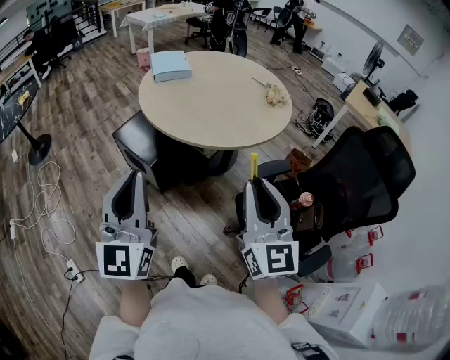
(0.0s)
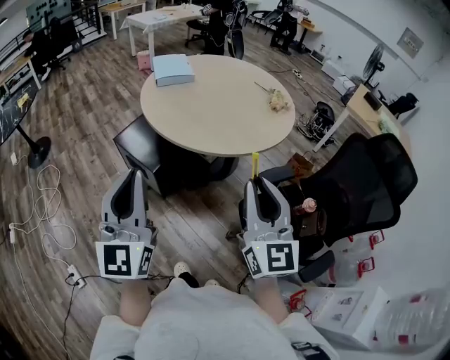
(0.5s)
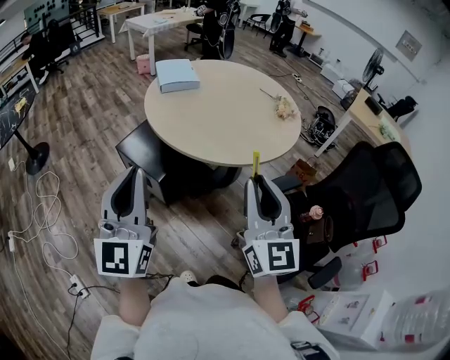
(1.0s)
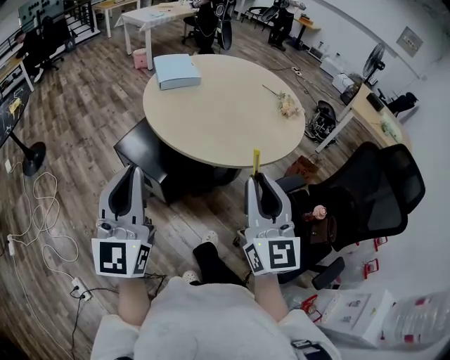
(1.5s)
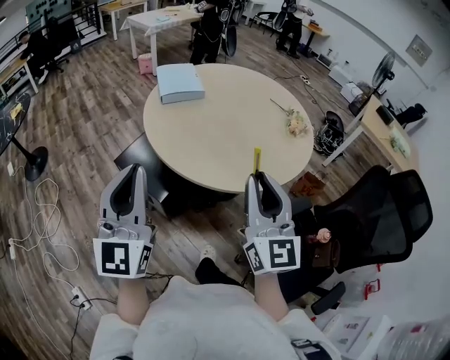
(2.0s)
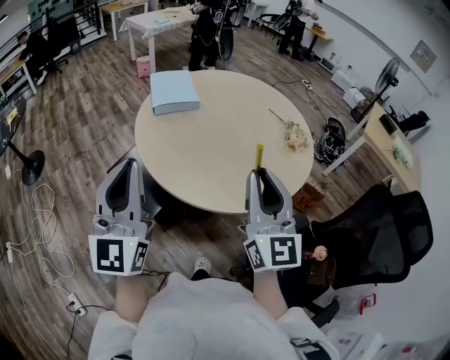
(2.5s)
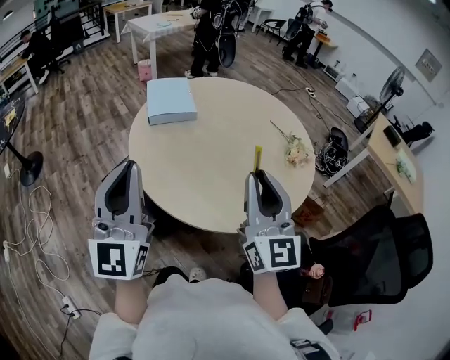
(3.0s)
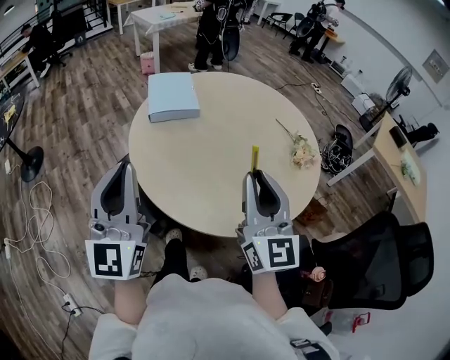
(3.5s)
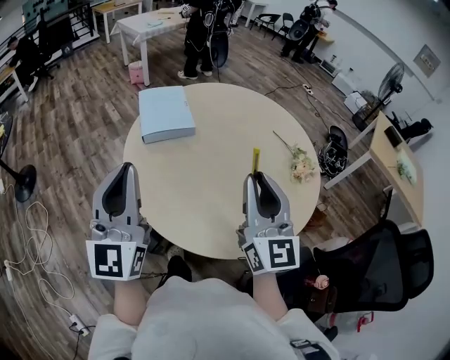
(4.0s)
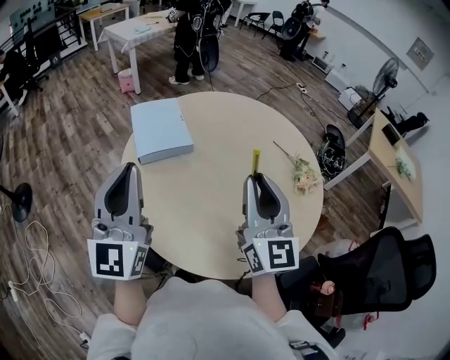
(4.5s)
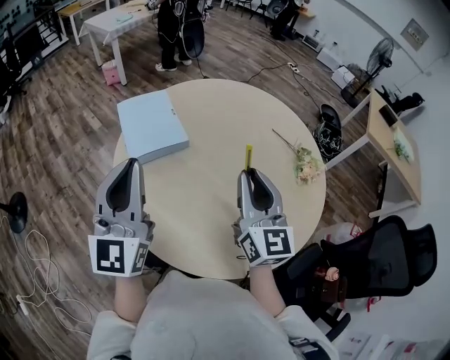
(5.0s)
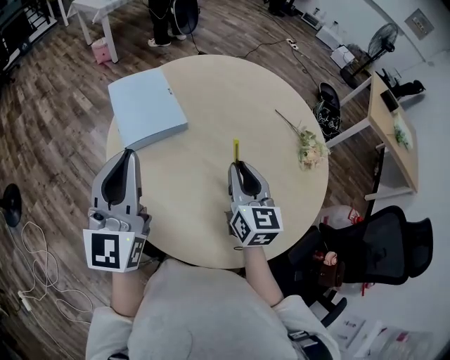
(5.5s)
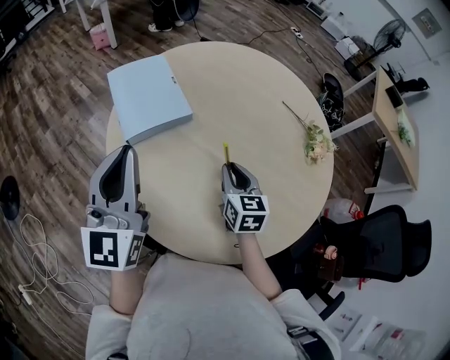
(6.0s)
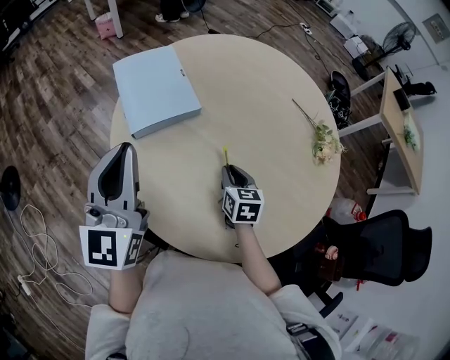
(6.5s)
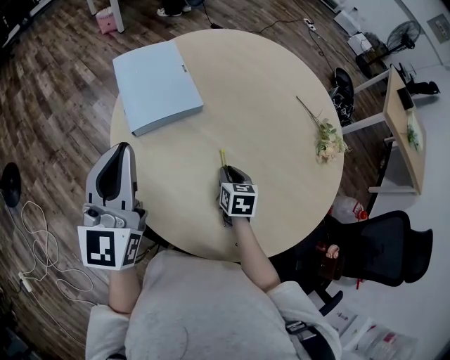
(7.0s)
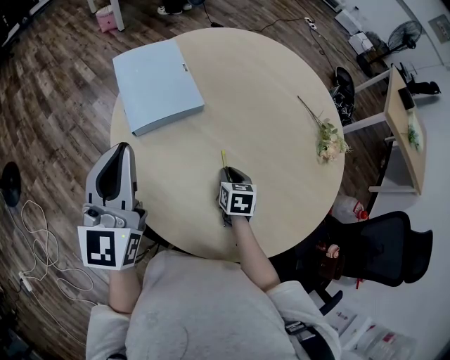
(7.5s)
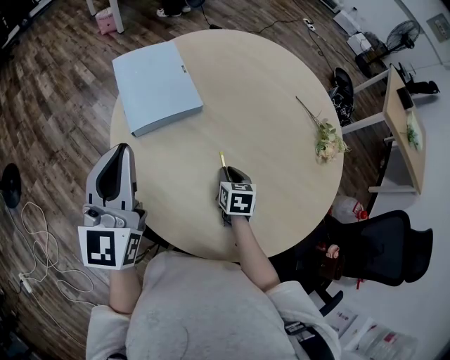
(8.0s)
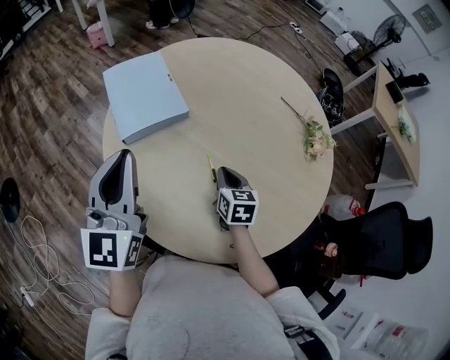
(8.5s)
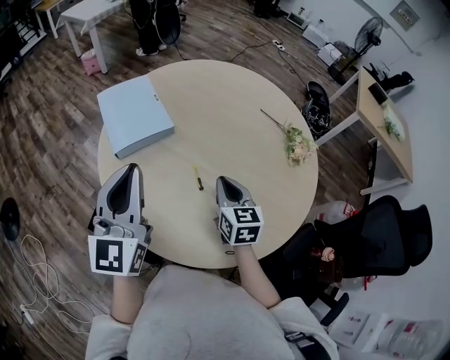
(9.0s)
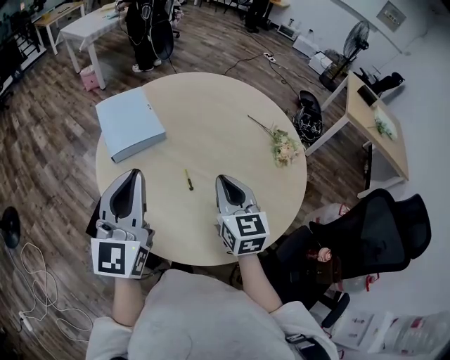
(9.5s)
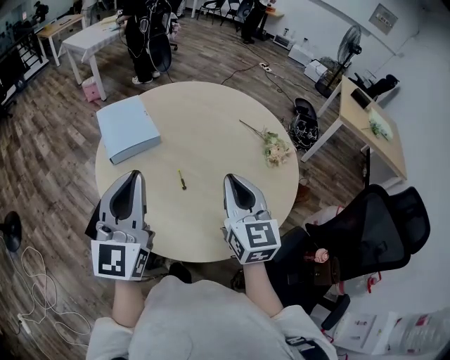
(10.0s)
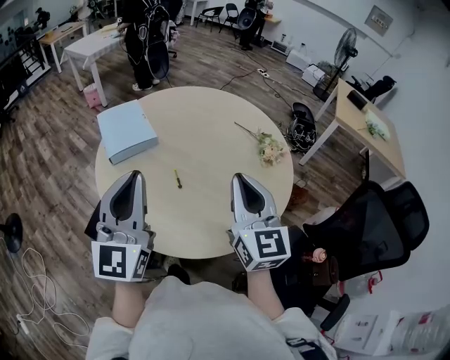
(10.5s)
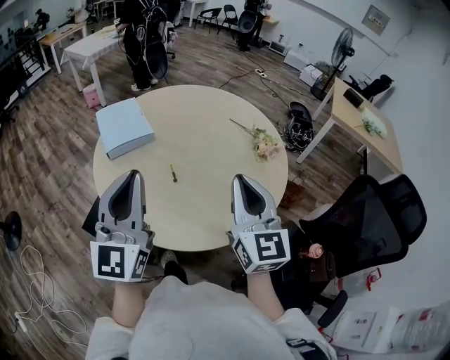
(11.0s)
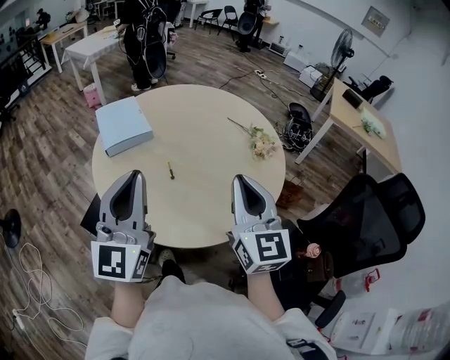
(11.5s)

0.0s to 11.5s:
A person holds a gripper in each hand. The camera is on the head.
0.0s to 2.0s: Both grippers move forward, roughly 25 cm.
2.0s to 4.0s: Both grippers travel together forward, some 30 cm.
4.0s to 6.0s: The left gripper shifts roughly 25 cm forward and downward. The right gripper shifts approximately 35 cm downward and forward, and points its fingers about 40 degrees further downward.
6.0s to 7.5s: The right gripper moves downward, about 15 cm, and swivels approximately 20 degrees.
7.5s to 9.5s: The right gripper shifts about 25 cm upward, and angles its fingers upward, by some 40 degrees. Meanwhile the left gripper travels to the right, backward and upward by about 20 cm.
9.5s to 11.5s: The left gripper is displaced backward and to the right by roughly 15 cm; the right gripper heads backward, upward and to the right, covering some 25 cm.

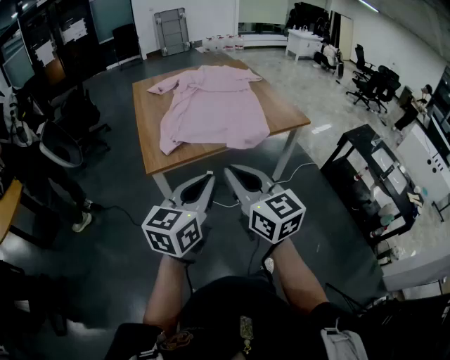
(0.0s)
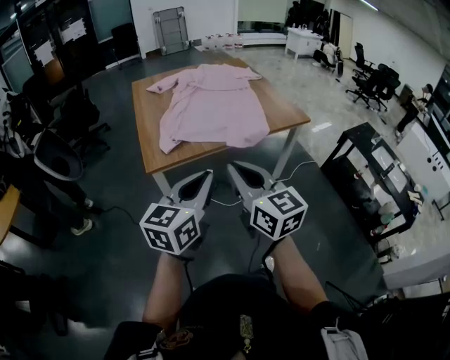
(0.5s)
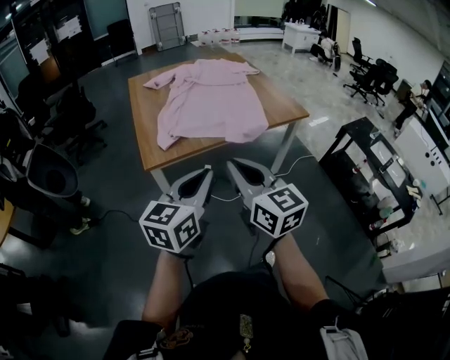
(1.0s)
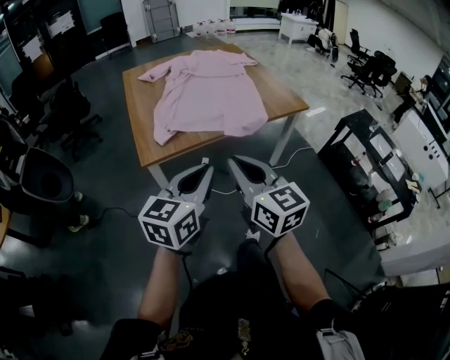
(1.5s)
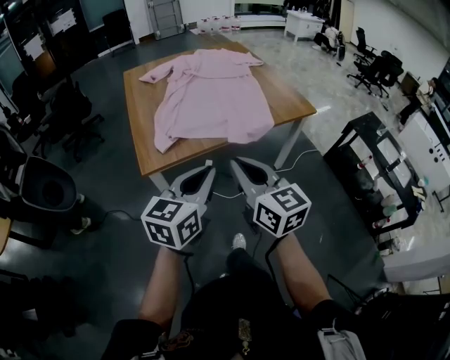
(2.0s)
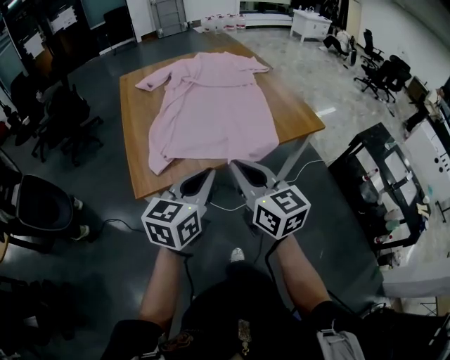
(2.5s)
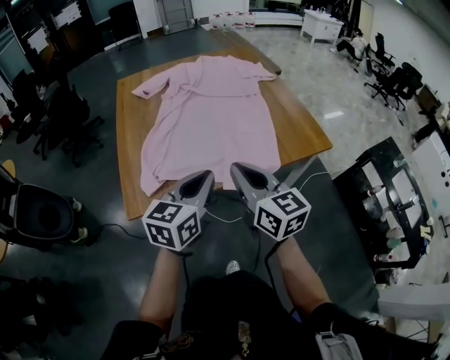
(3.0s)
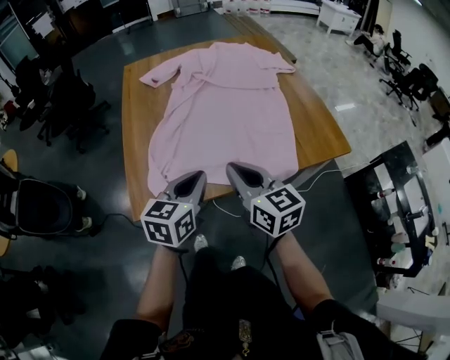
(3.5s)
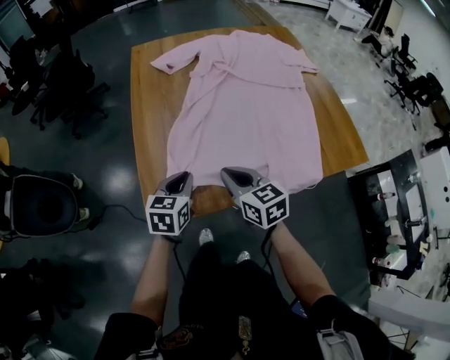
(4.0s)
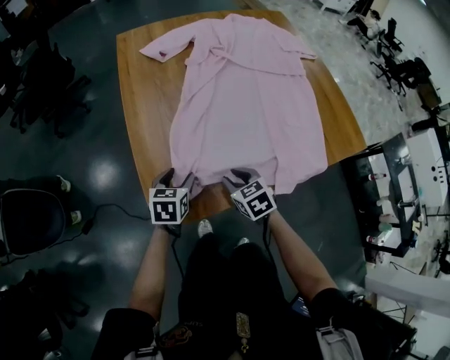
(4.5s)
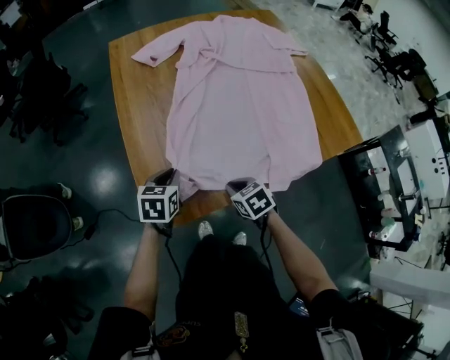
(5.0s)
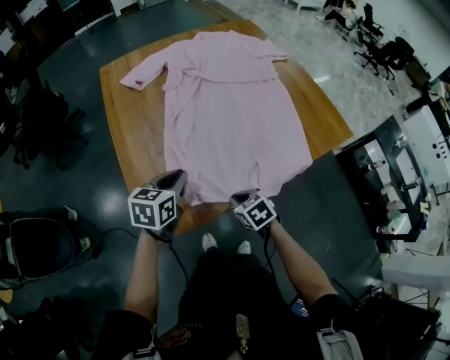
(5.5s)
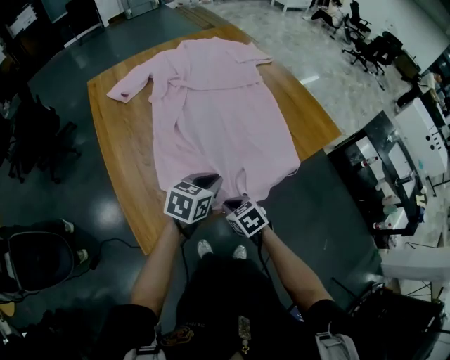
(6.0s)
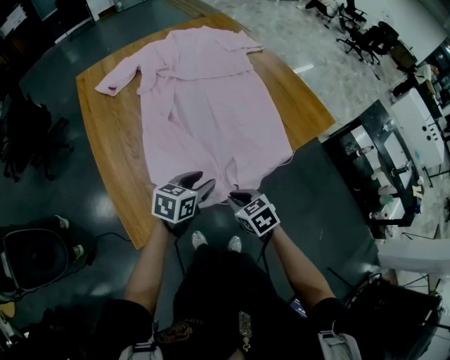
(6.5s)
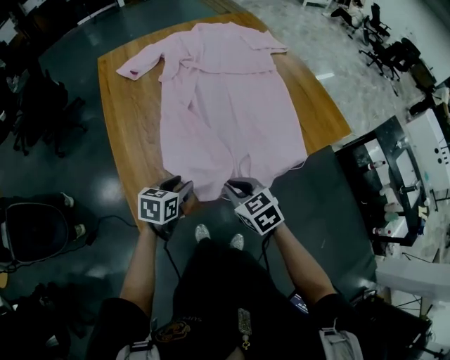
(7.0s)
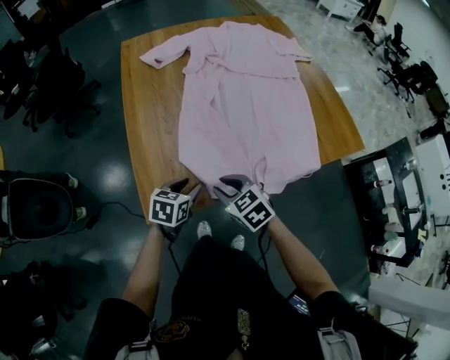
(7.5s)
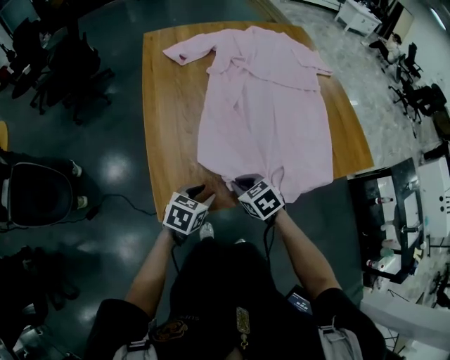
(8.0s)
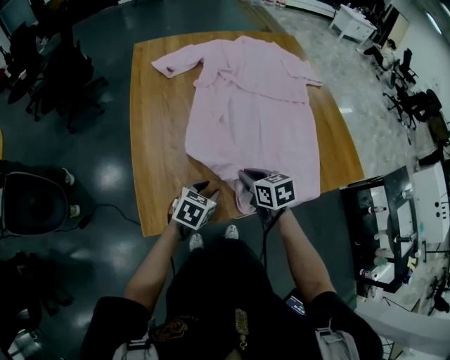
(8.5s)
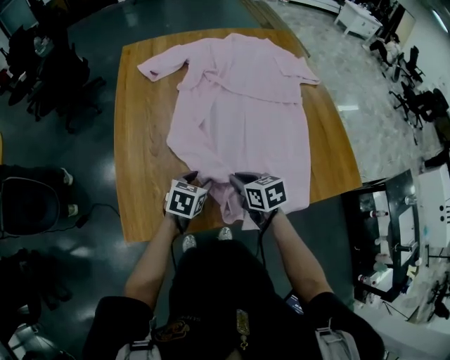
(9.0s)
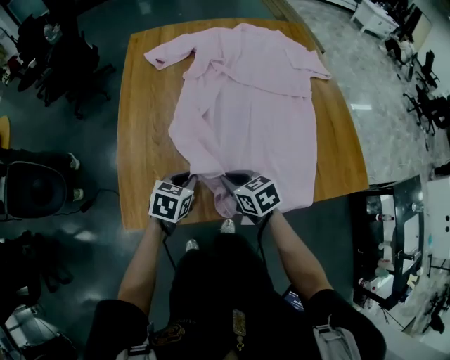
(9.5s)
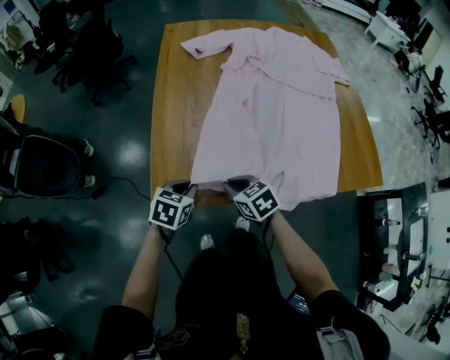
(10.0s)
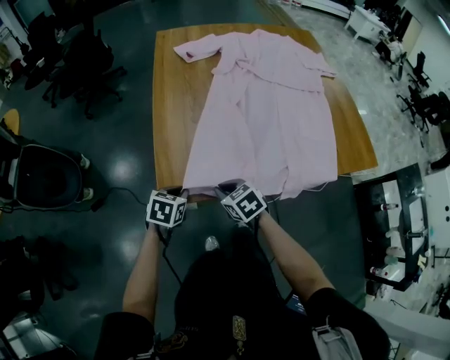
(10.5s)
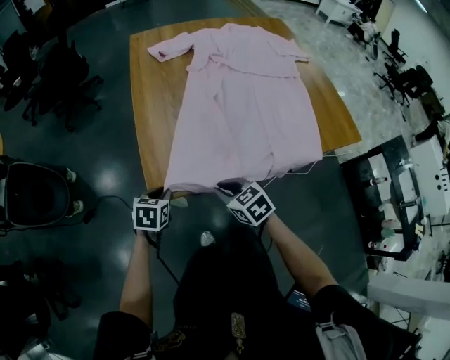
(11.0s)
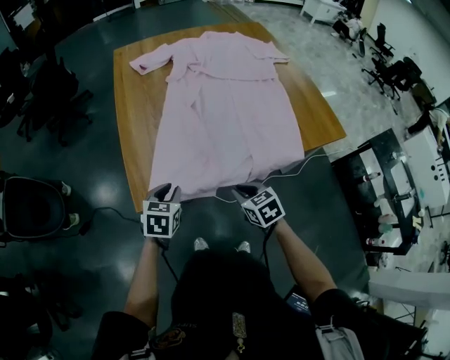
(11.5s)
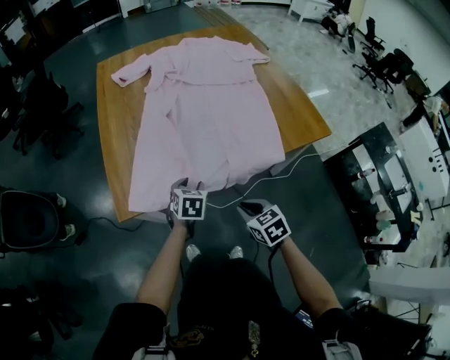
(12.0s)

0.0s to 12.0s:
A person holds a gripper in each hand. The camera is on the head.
0.0s to 2.0s: Both grippers travel together forward, some 10 cm.
2.0s to 4.0s: The two grippers go about 40 cm forward and downward. The left gripper turns by about 30 degrees. The right gripper rotates about 30 degrees.
4.0s to 6.0s: The left gripper is displaced to the right by some 15 cm, changes its angle by some 40 degrees, and opens, then closes once more; the right gripper is displaced downward and to the right by approximately 15 cm, swivels about 30 degrees, and opens, then closes once more.
6.0s to 8.0s: The right gripper heads to the left, covering roughly 10 cm, and swivels roughly 20 degrees; the left gripper travels to the left, downward and backward by some 20 cm, and opens its fingers.
8.0s to 10.0s: The left gripper reaches approximately 10 cm to the right, then returns, and closes its fingers. Meanwhile the right gripper goes to the right and returns, some 15 cm each way.
10.0s to 12.0s: The right gripper shifts approximately 25 cm backward and to the right, and rotates some 20 degrees; the left gripper moves to the right, about 15 cm, and opens up.

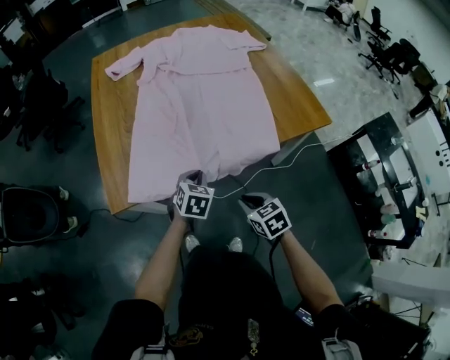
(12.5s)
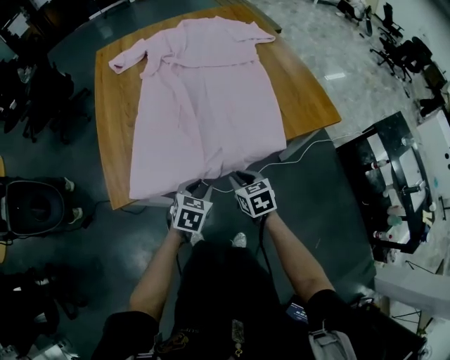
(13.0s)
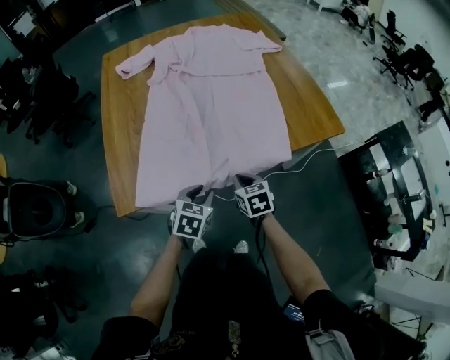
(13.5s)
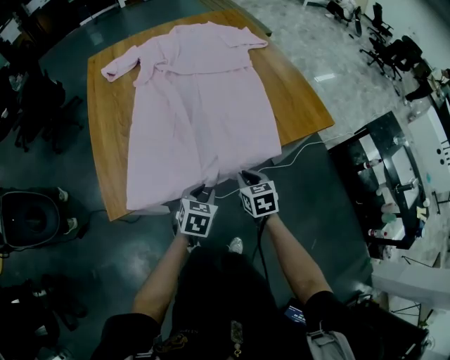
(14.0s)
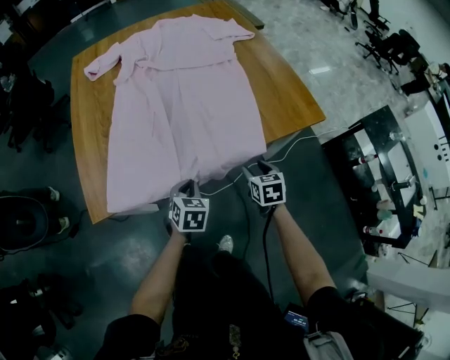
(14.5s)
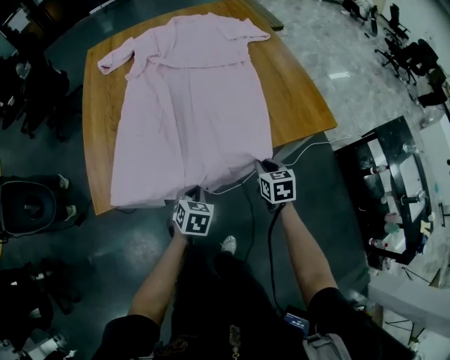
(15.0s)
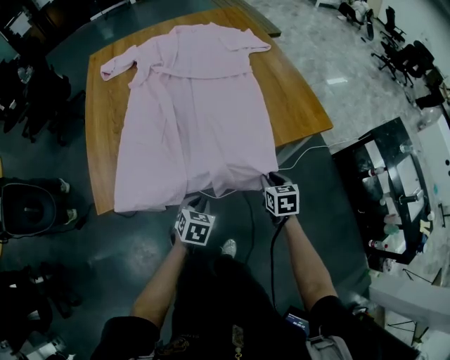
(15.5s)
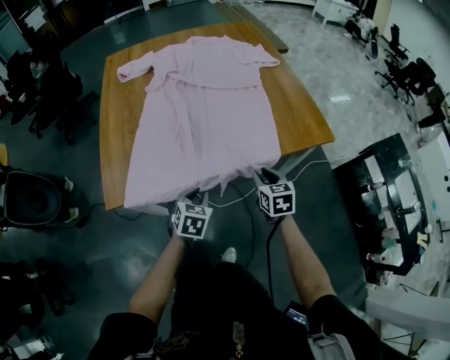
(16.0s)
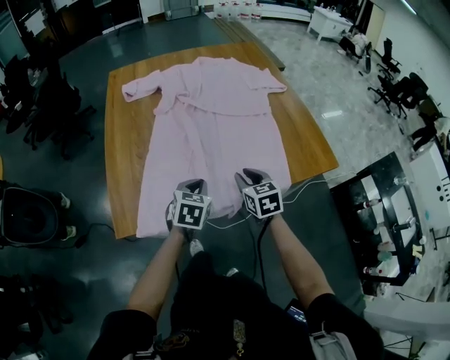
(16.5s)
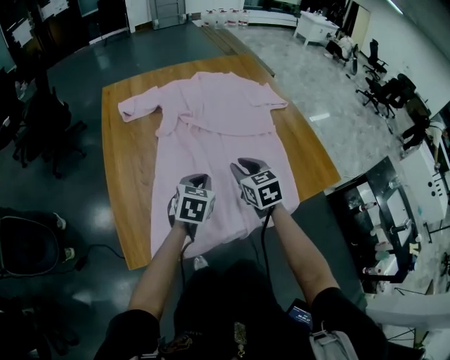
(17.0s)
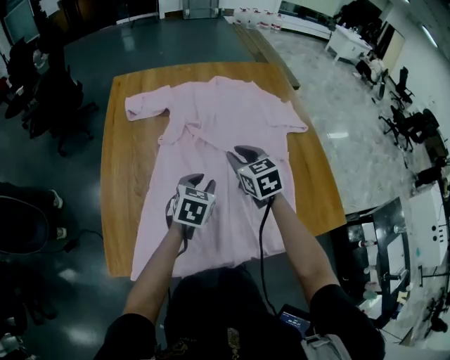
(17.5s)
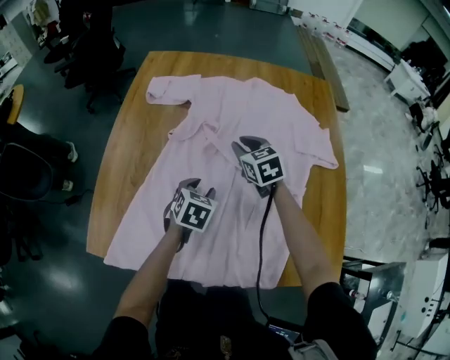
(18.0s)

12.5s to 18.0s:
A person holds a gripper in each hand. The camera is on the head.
12.5s to 14.5s: The right gripper heads to the right, forward and downward, covering roughly 20 cm, rotates roughly 20 degrees, and opens its fingers; the left gripper moves roughly 5 cm, and opens, then closes once more.
14.5s to 16.0s: The left gripper moves approximately 5 cm, while the right gripper moves upward, approximately 10 cm, and closes.
16.0s to 18.0s: The right gripper ends up some 50 cm from where it was, and rotates some 40 degrees. Meanwhile the left gripper travels upward and back again, approximately 10 cm each way.
